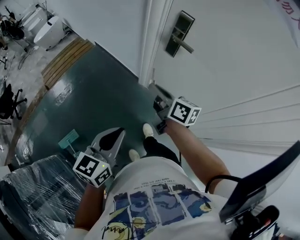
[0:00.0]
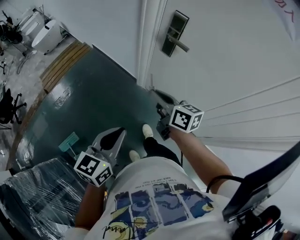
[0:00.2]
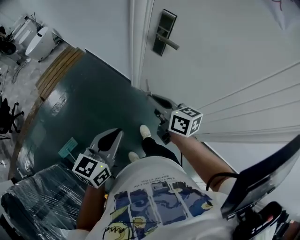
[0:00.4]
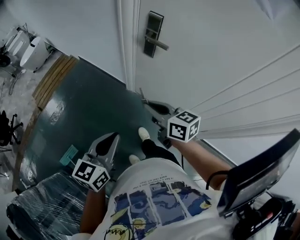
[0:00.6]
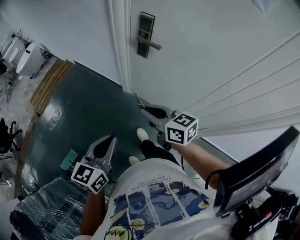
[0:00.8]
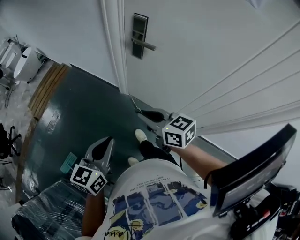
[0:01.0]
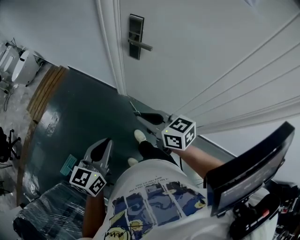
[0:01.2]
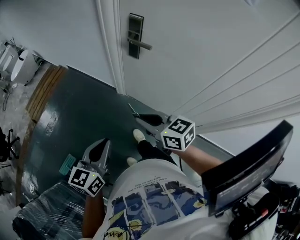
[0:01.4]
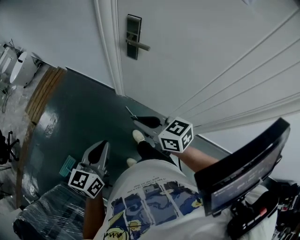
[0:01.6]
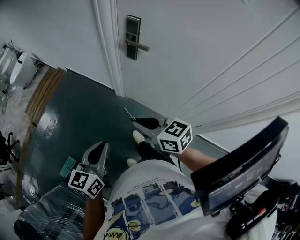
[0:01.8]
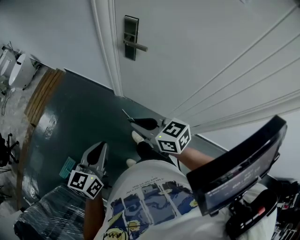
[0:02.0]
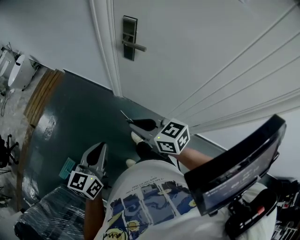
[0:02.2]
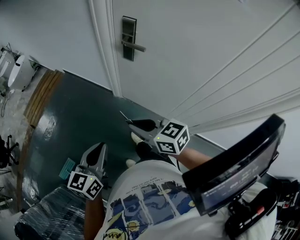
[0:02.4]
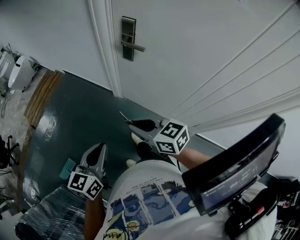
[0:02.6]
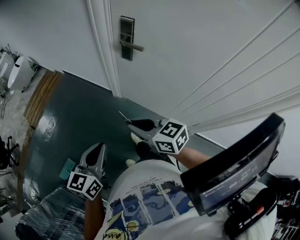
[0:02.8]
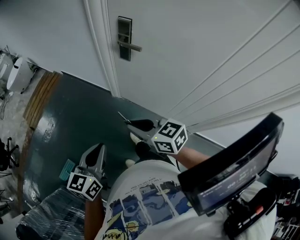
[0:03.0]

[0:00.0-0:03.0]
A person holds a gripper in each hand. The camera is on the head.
0:00.0 to 0:01.6: The right gripper moves backward, roughly 15 cm, and rotates some 30 degrees.
0:01.6 to 0:03.0: The grippers make only small movements.

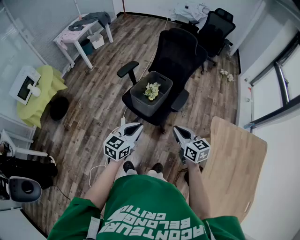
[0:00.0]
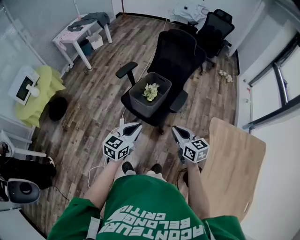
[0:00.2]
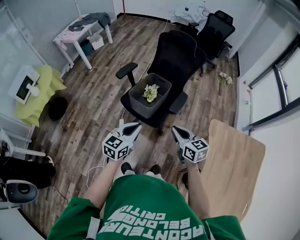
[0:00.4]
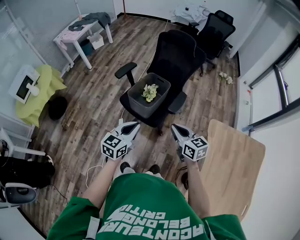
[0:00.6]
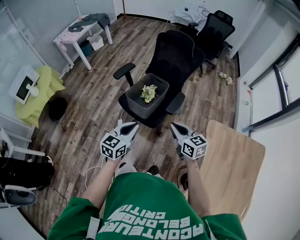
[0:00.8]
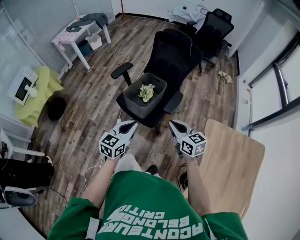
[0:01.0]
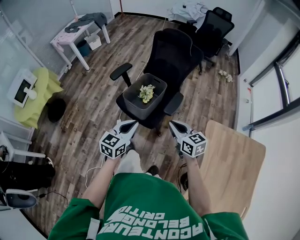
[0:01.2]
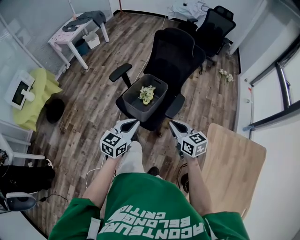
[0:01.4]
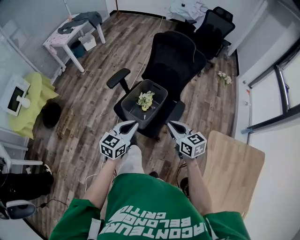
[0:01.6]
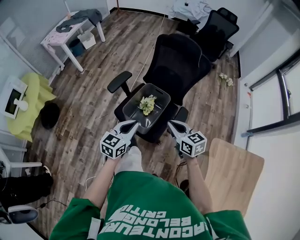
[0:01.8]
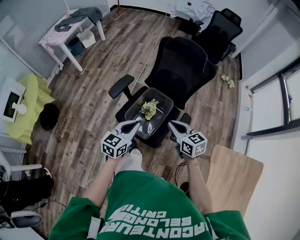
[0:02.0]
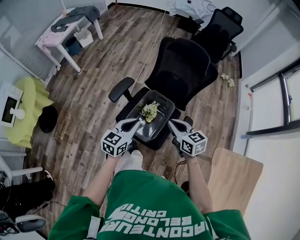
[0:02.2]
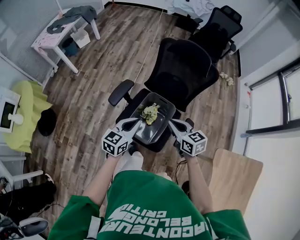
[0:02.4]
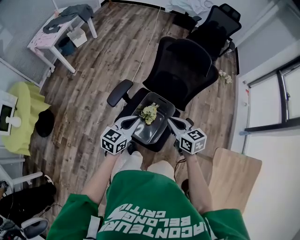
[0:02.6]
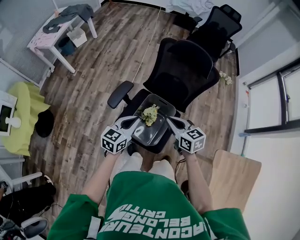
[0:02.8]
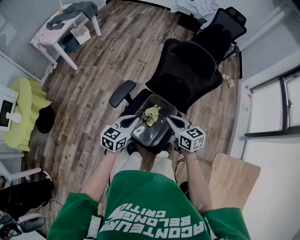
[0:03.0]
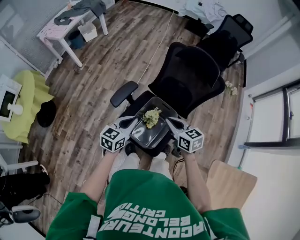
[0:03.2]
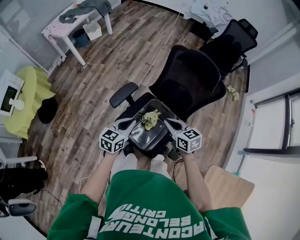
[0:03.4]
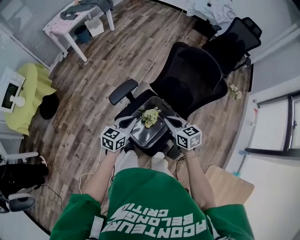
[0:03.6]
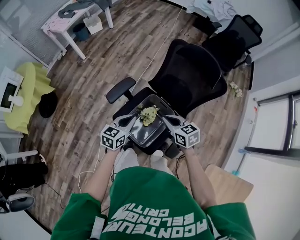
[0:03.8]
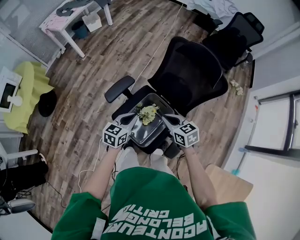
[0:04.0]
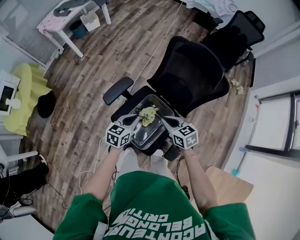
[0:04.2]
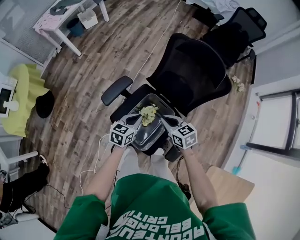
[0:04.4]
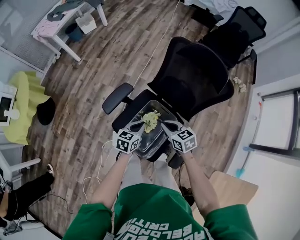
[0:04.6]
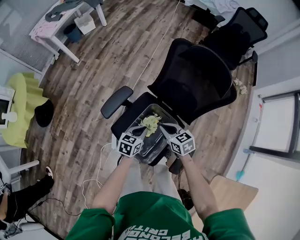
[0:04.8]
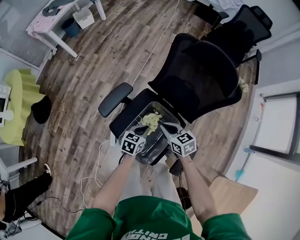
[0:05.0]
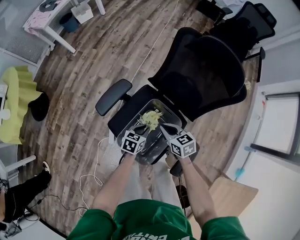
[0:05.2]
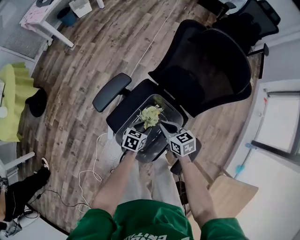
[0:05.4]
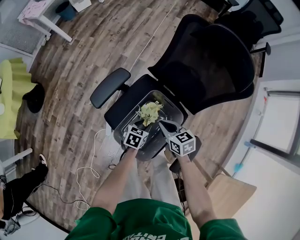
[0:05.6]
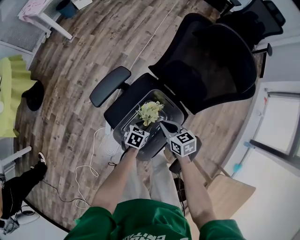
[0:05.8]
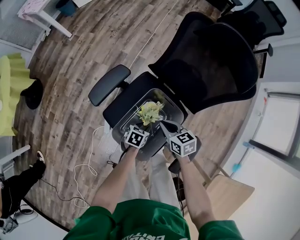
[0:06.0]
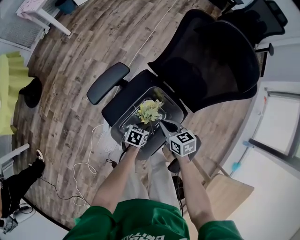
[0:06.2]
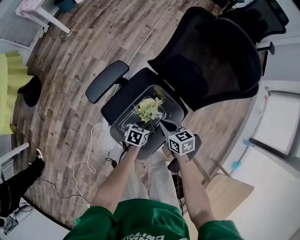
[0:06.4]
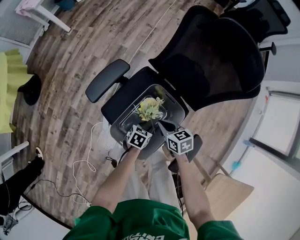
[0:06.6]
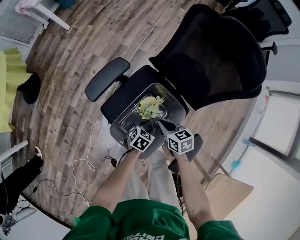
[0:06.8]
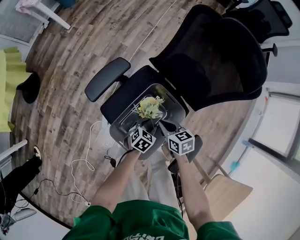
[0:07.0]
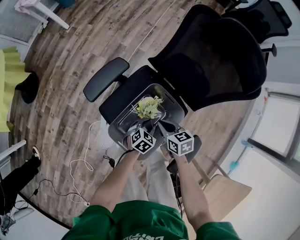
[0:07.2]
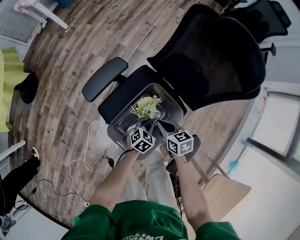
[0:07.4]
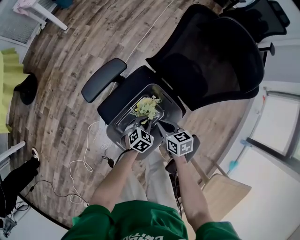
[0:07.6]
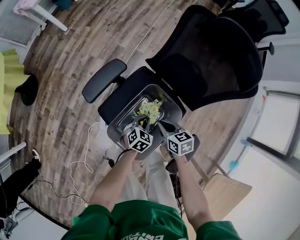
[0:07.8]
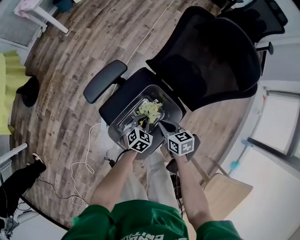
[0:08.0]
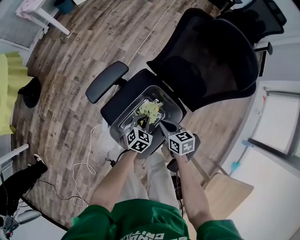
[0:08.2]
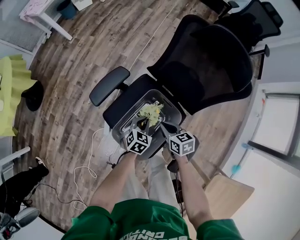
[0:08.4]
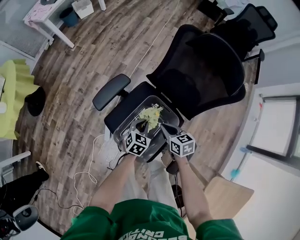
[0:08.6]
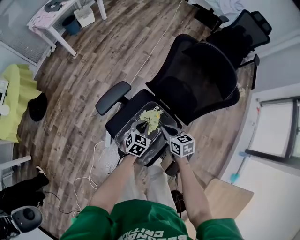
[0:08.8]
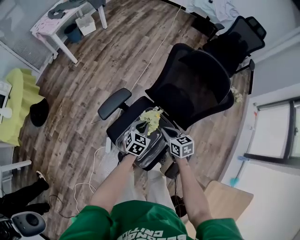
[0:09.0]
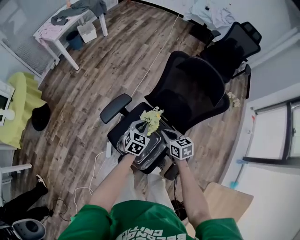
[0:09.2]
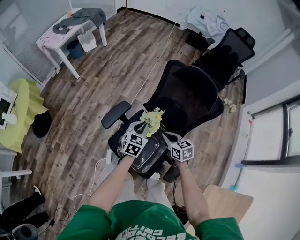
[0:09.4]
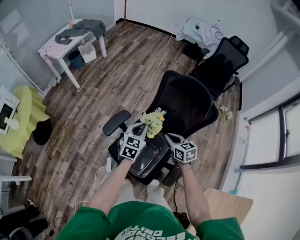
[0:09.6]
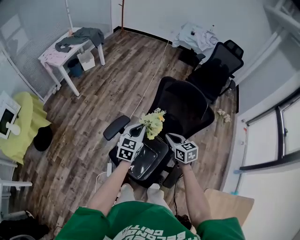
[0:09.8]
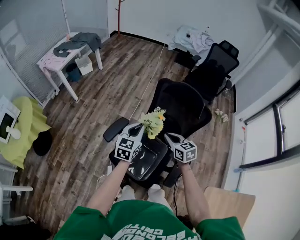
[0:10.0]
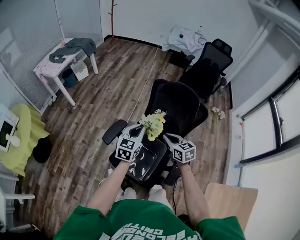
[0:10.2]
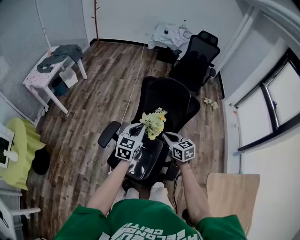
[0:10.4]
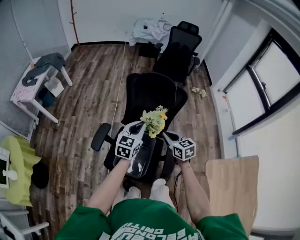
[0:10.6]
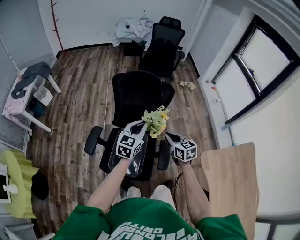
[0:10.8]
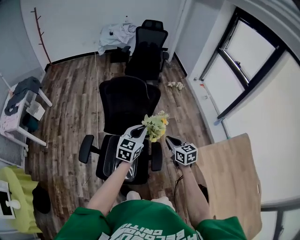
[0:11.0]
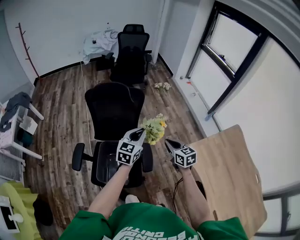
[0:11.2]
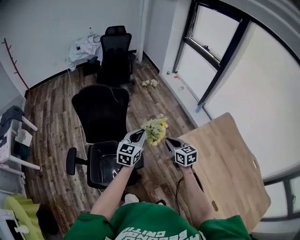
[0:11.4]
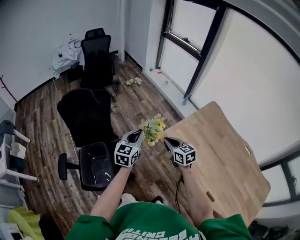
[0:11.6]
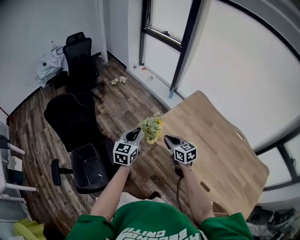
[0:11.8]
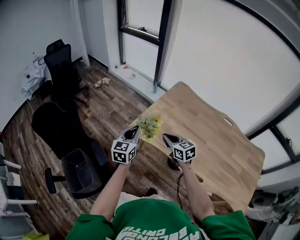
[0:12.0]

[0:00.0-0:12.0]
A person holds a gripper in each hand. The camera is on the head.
0:00.0 to 0:01.6: The two grippers go about 15 cm forward.
0:01.6 to 0:03.0: The left gripper goes some 25 cm forward. The right gripper goes some 25 cm forward and to the left.
0:03.0 to 0:04.4: The left gripper shifts about 15 cm downward, to the right and forward. The right gripper shifts roughly 10 cm downward and forward.
0:04.4 to 0:06.0: The right gripper shifts approximately 15 cm downward; the left gripper heads downward, covering some 25 cm, rotates some 30 degrees, and opens its fingers.
0:06.0 to 0:07.6: The left gripper changes its angle by about 20 degrees, and closes.
0:07.6 to 0:09.0: The two grippers go some 15 cm upward.
0:09.0 to 0:10.4: The grippers both shift upward by approximately 20 cm. The right gripper changes its angle by approximately 20 degrees, while the left gripper changes its angle by roughly 30 degrees.
0:10.4 to 0:12.0: The two grippers travel together, some 60 cm. The right gripper rotates roughly 60 degrees. Meanwhile the left gripper turns by roughly 50 degrees.

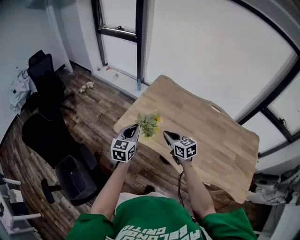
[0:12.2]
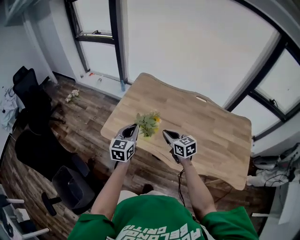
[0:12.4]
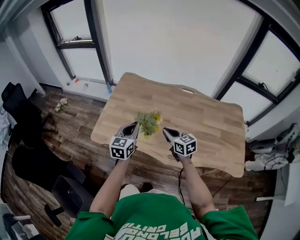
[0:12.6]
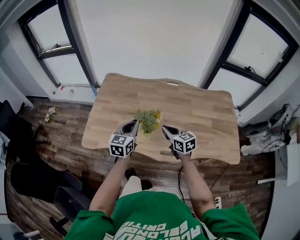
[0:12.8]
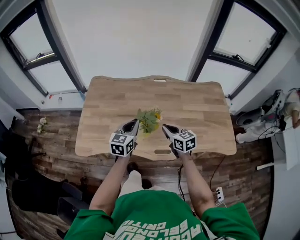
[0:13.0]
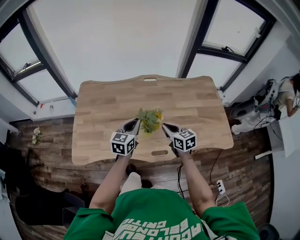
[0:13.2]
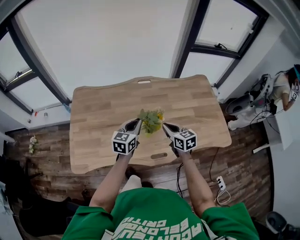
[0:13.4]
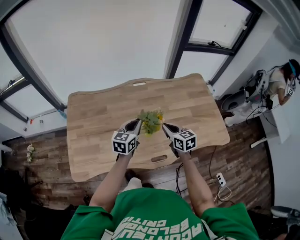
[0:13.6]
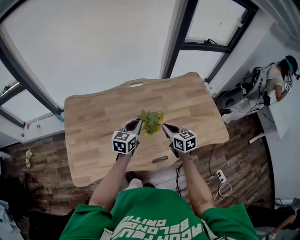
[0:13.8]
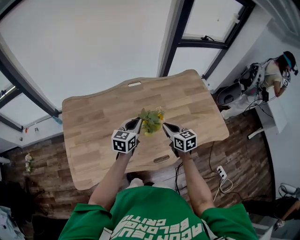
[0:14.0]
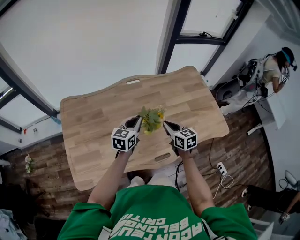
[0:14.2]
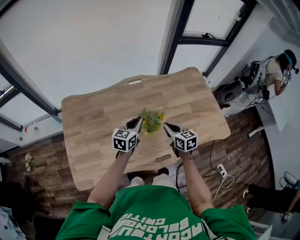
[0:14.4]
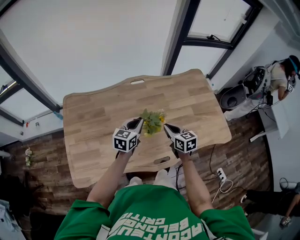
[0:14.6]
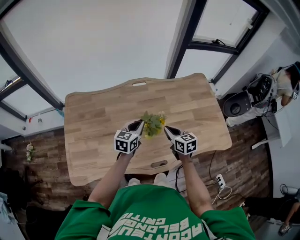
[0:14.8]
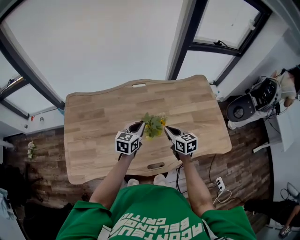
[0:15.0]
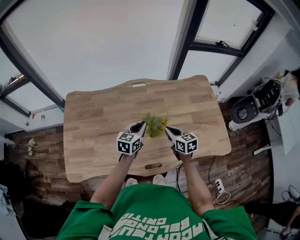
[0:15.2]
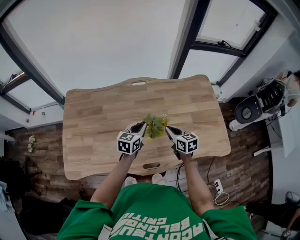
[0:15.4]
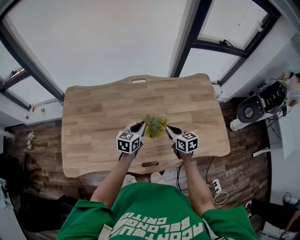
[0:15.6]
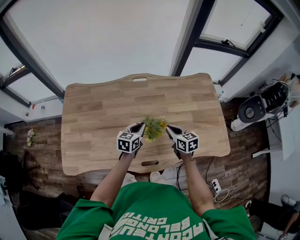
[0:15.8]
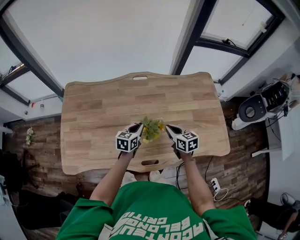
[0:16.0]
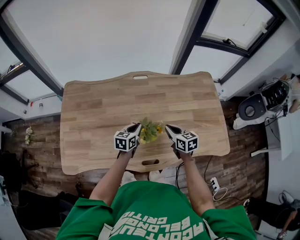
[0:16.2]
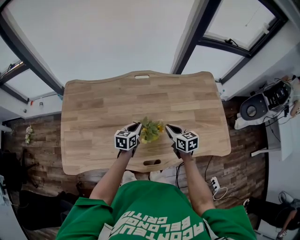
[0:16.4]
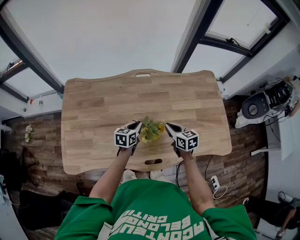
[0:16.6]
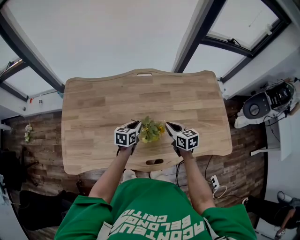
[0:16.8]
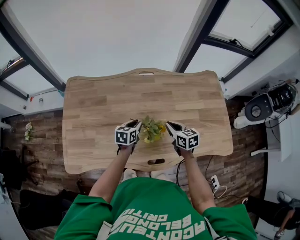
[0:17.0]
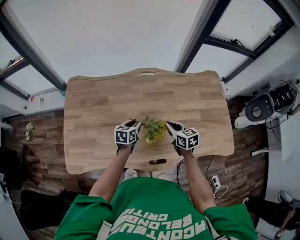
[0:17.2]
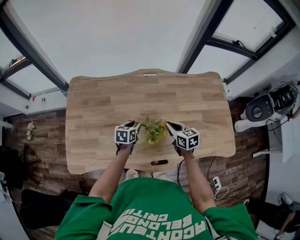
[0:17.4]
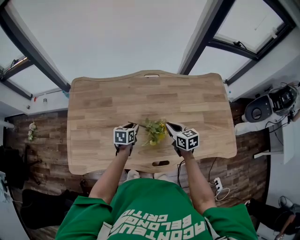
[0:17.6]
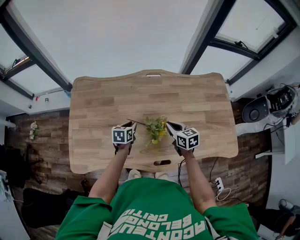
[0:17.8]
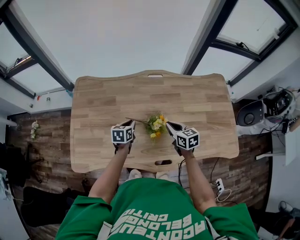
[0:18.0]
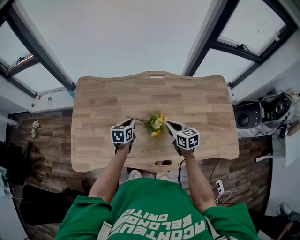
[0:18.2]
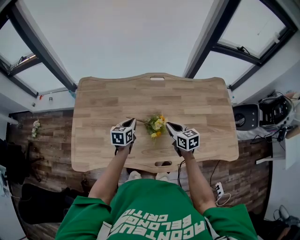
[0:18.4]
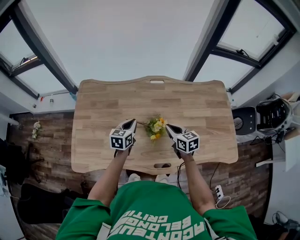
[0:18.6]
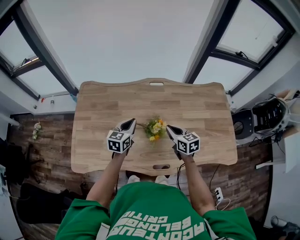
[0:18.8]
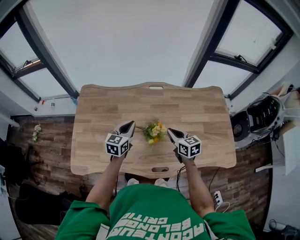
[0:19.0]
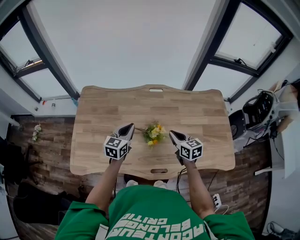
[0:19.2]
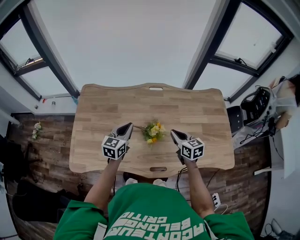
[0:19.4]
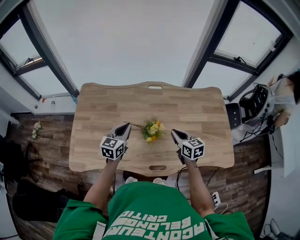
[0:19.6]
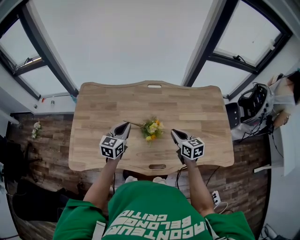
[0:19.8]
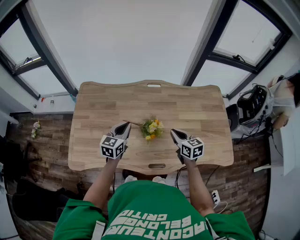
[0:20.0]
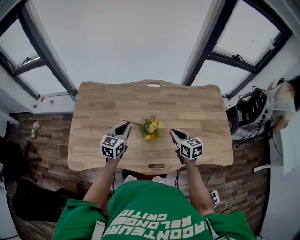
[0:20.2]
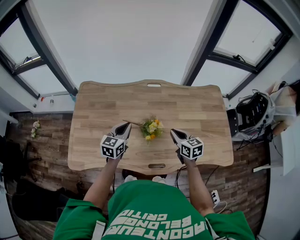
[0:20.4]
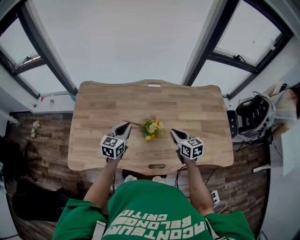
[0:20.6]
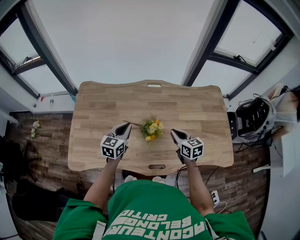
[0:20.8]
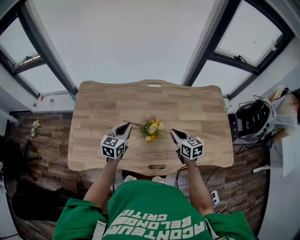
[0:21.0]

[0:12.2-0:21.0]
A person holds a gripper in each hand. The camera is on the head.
0:12.2 to 0:13.6: The left gripper ends up some 40 cm from where it was, and rotates roughly 50 degrees; the right gripper changes place by approximately 35 cm, and turns by approximately 50 degrees.
0:13.6 to 0:15.2: The left gripper shifts about 10 cm to the right and forward. Meanwhile the right gripper is displaced forward and to the right by about 10 cm.
0:15.2 to 0:16.6: The left gripper is displaced downward by approximately 10 cm.
0:16.6 to 0:18.0: The left gripper goes approximately 10 cm to the left, and opens, then closes once more. Meanwhile the right gripper shifts approximately 5 cm to the left.
0:18.0 to 0:19.6: The left gripper moves upward, approximately 15 cm, and changes its angle by about 30 degrees, while the right gripper goes roughly 5 cm upward.
0:19.6 to 0:21.0: The grippers stay close to where they were, moving slightly.
